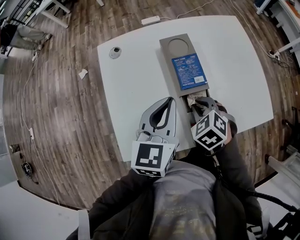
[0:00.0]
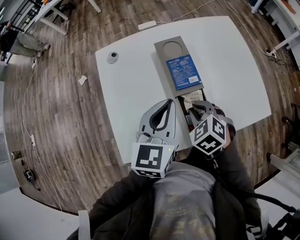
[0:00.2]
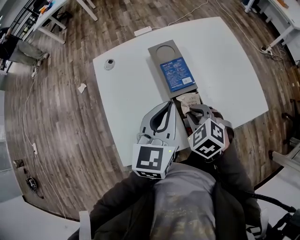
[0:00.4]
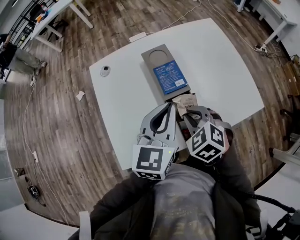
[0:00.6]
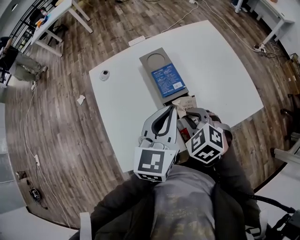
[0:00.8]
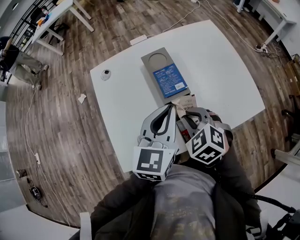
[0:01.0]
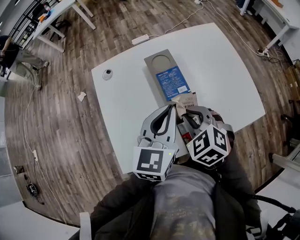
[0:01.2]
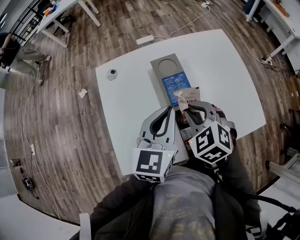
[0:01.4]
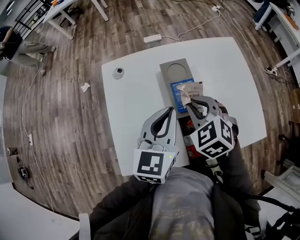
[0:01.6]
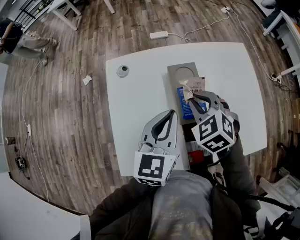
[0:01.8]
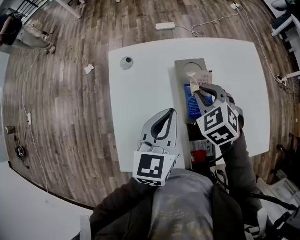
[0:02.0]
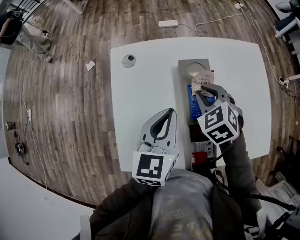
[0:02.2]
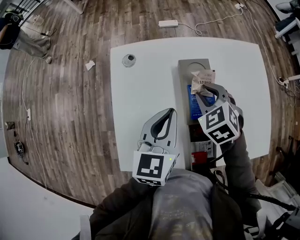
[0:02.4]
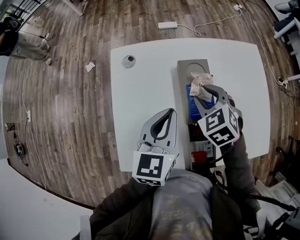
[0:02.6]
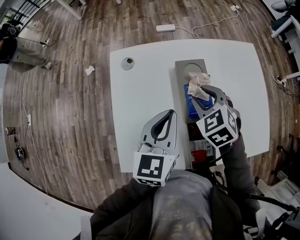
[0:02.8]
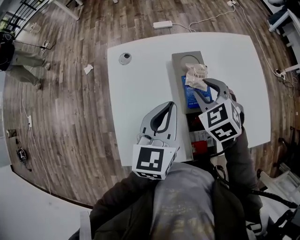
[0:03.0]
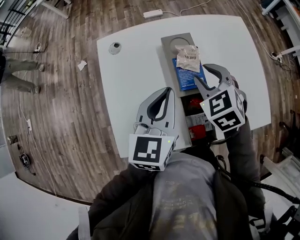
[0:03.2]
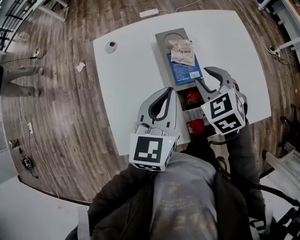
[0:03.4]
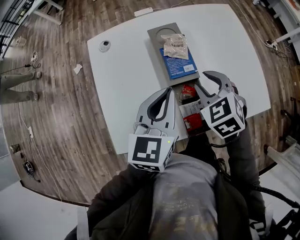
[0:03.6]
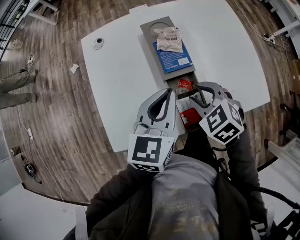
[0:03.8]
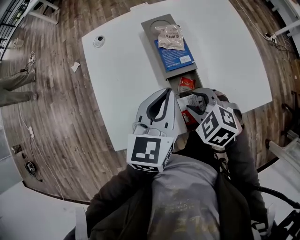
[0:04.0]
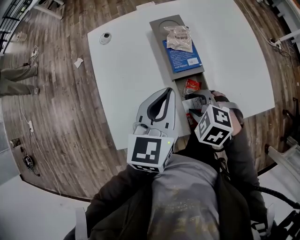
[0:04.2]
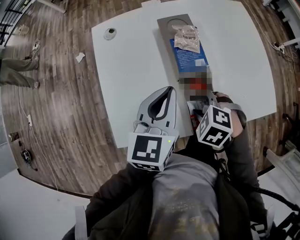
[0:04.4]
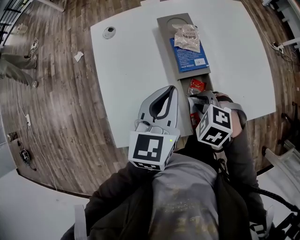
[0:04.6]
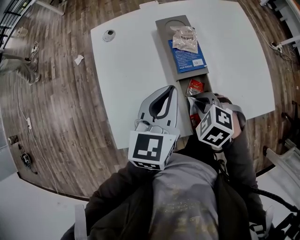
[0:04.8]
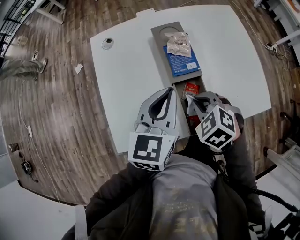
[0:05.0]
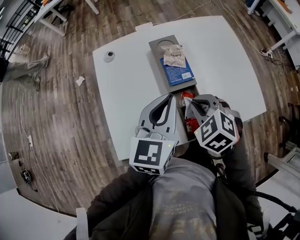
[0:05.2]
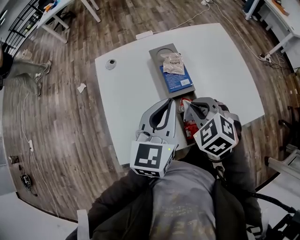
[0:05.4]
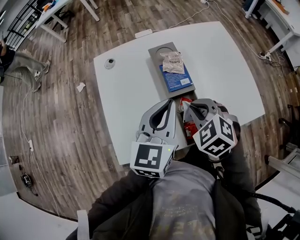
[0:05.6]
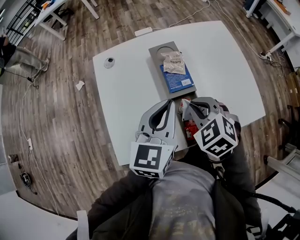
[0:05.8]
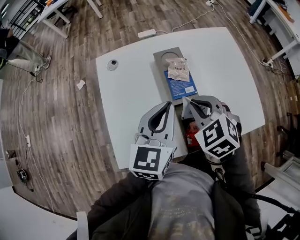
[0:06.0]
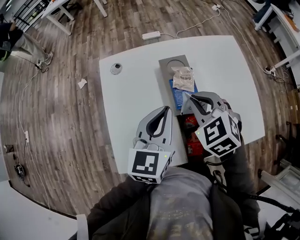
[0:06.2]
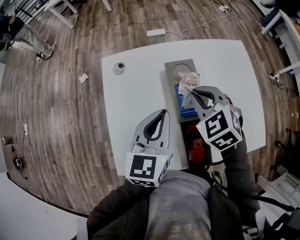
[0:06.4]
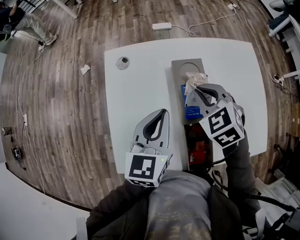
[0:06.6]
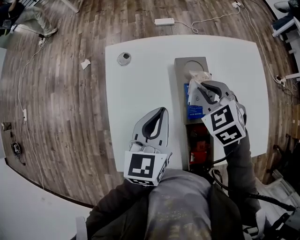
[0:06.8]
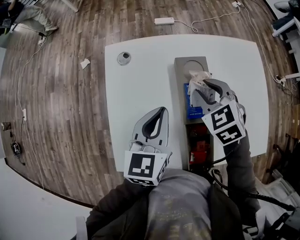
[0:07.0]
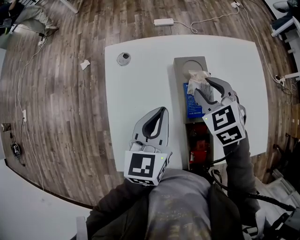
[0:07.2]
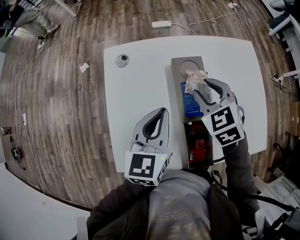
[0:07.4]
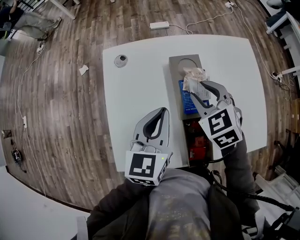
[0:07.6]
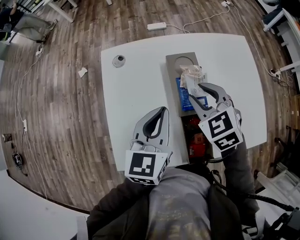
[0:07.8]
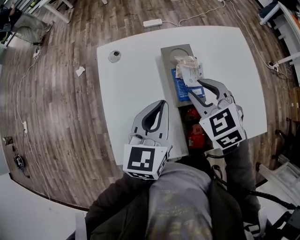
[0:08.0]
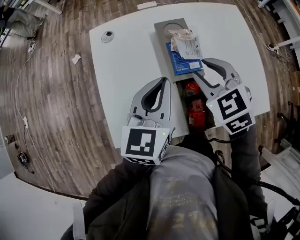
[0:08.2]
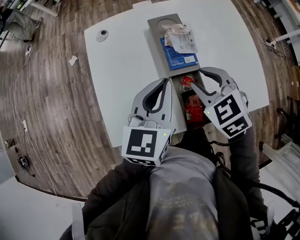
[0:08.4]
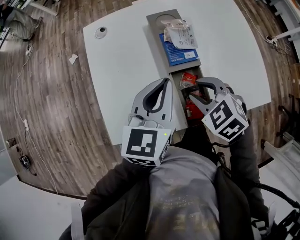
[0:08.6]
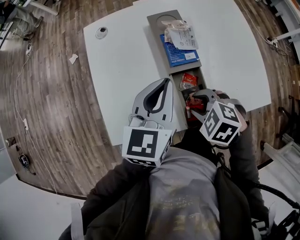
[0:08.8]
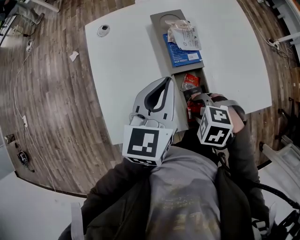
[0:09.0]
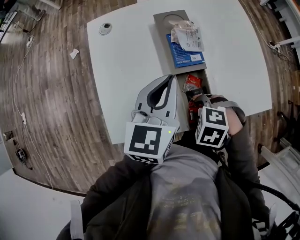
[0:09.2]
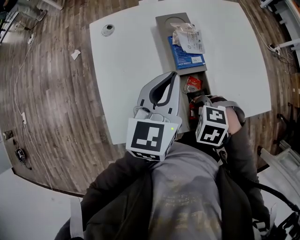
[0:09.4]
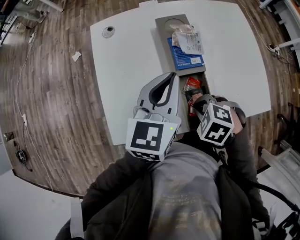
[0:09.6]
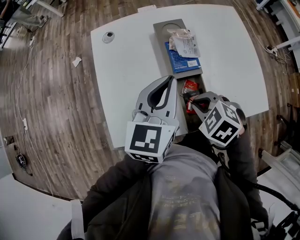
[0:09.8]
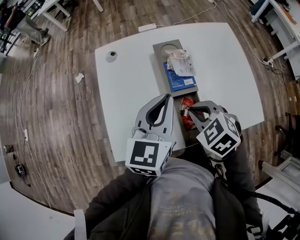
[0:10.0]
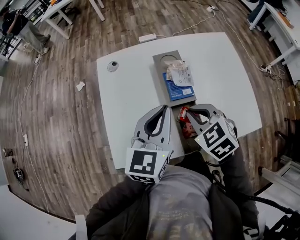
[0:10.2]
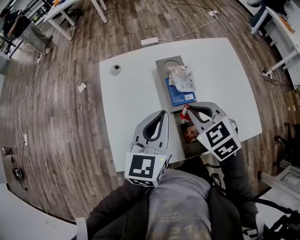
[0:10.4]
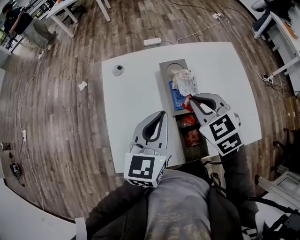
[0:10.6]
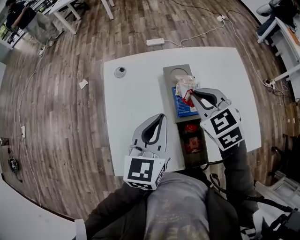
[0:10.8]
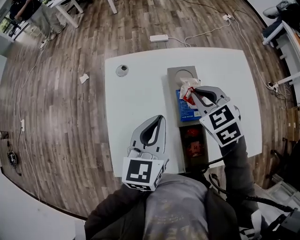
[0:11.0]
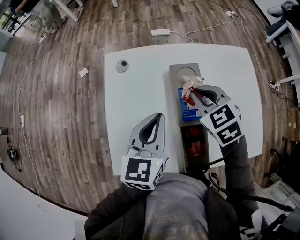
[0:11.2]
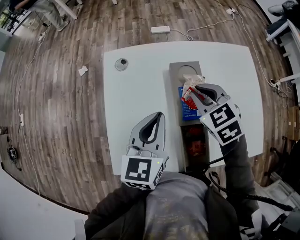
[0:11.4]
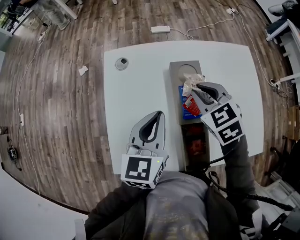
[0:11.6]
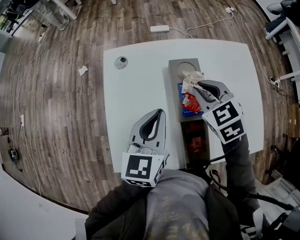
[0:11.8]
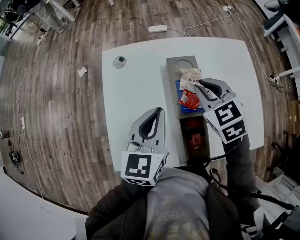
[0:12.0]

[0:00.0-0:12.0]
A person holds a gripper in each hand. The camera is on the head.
0:00.0 to 0:01.6: The right gripper moves upward and forward, about 15 cm.
0:01.6 to 0:03.0: The right gripper moves forward, some 5 cm.
0:03.0 to 0:04.4: The left gripper shifts some 5 cm backward. The right gripper goes roughly 20 cm backward and downward, and swivels roughly 30 degrees.
0:04.4 to 0:06.0: The right gripper goes roughly 15 cm upward and forward, rotates roughly 30 degrees, and closes; the left gripper shifts by some 5 cm.
0:06.0 to 0:07.6: The right gripper is displaced forward by about 10 cm, and opens its fingers; the left gripper ends up roughly 5 cm from where it was.
0:07.6 to 0:09.0: The right gripper shifts by about 25 cm, and tilts its fingers roughly 30 degrees downward. The left gripper changes place by about 5 cm.
0:09.0 to 0:10.4: The right gripper travels upward by roughly 15 cm, tips its fingers upward by about 30 degrees, and closes.
0:10.4 to 0:12.0: The left gripper shifts some 5 cm forward. Meanwhile the right gripper shifts approximately 10 cm forward.

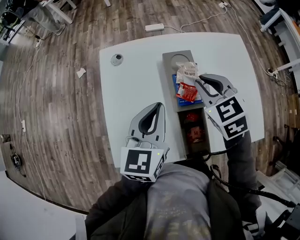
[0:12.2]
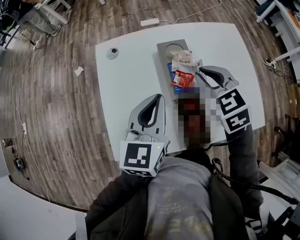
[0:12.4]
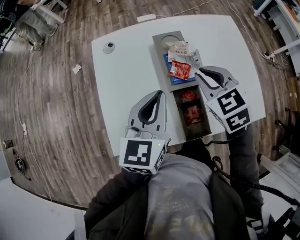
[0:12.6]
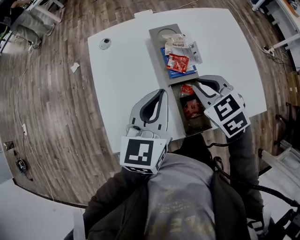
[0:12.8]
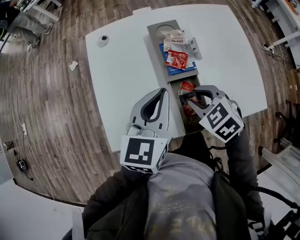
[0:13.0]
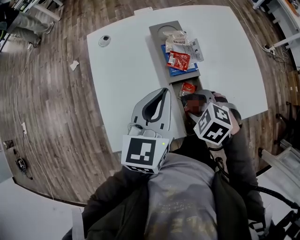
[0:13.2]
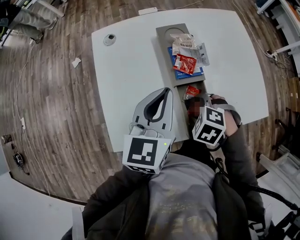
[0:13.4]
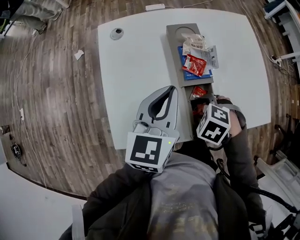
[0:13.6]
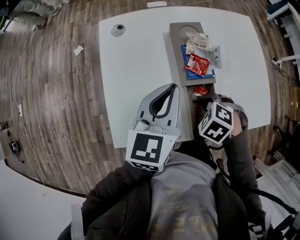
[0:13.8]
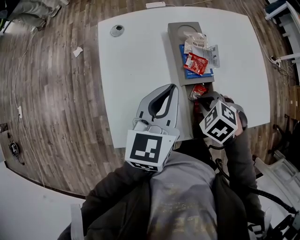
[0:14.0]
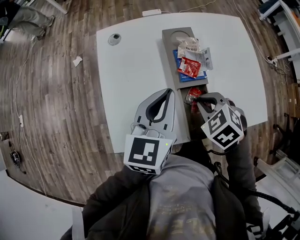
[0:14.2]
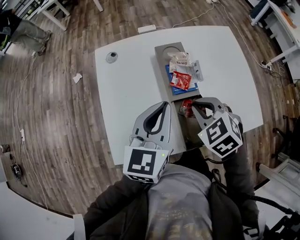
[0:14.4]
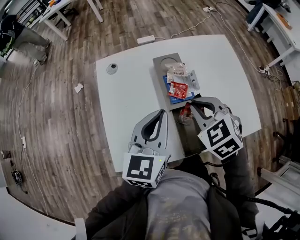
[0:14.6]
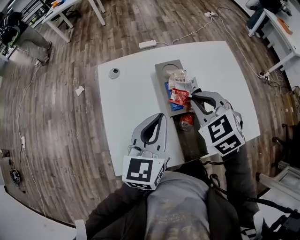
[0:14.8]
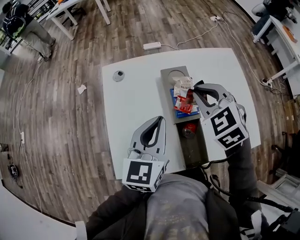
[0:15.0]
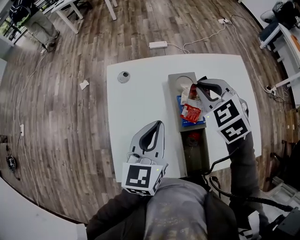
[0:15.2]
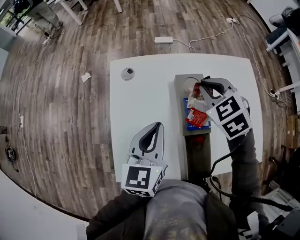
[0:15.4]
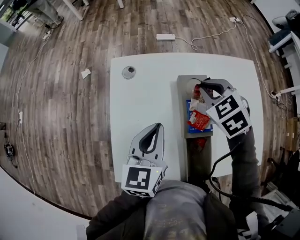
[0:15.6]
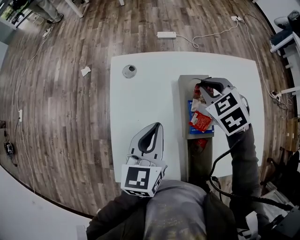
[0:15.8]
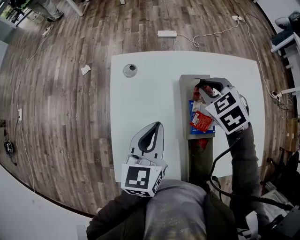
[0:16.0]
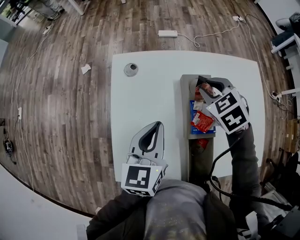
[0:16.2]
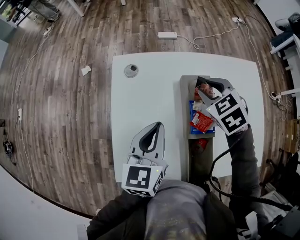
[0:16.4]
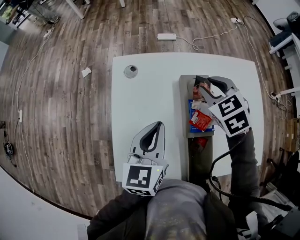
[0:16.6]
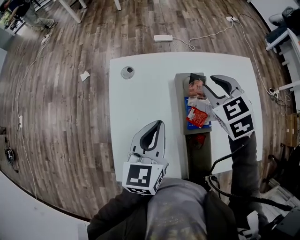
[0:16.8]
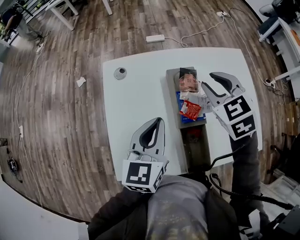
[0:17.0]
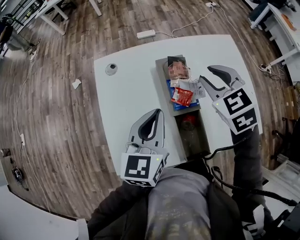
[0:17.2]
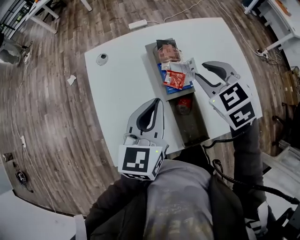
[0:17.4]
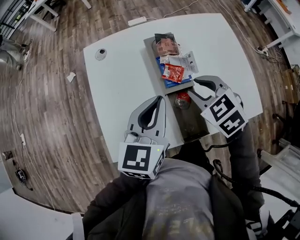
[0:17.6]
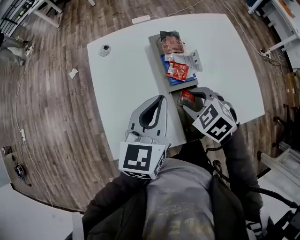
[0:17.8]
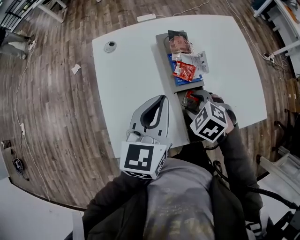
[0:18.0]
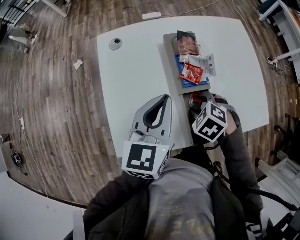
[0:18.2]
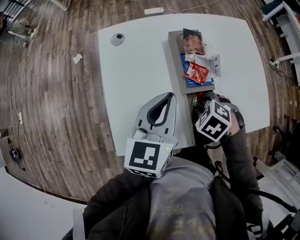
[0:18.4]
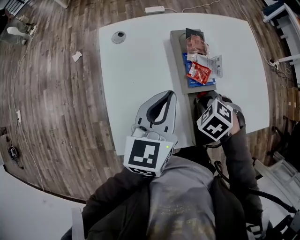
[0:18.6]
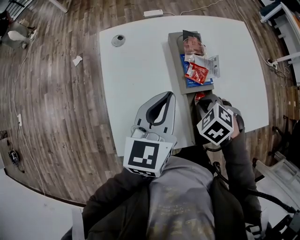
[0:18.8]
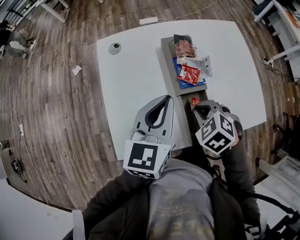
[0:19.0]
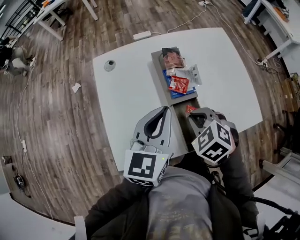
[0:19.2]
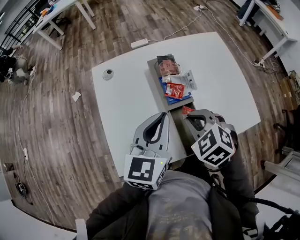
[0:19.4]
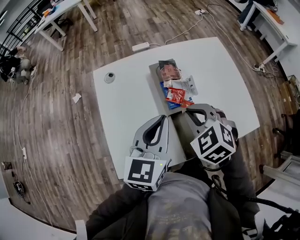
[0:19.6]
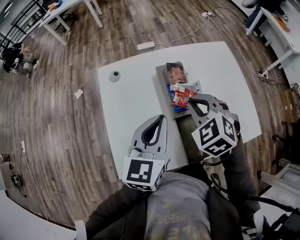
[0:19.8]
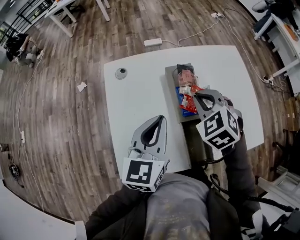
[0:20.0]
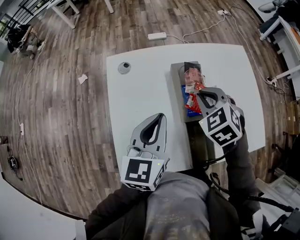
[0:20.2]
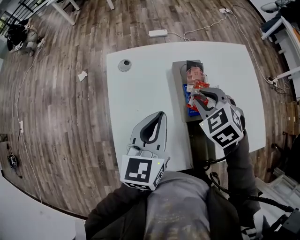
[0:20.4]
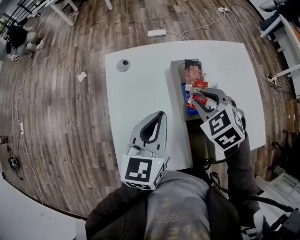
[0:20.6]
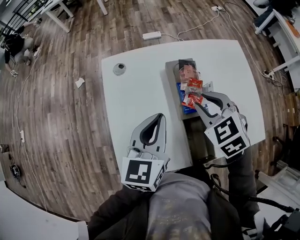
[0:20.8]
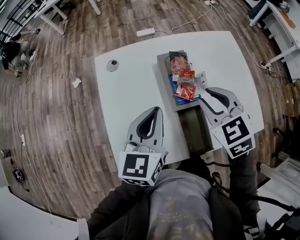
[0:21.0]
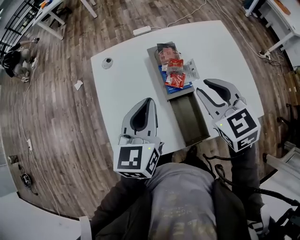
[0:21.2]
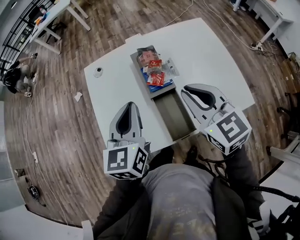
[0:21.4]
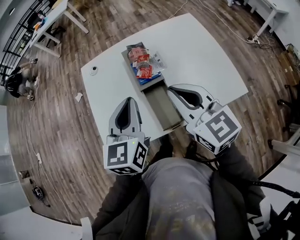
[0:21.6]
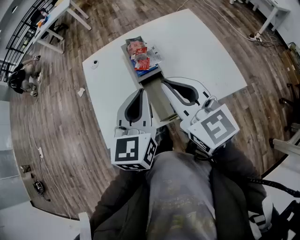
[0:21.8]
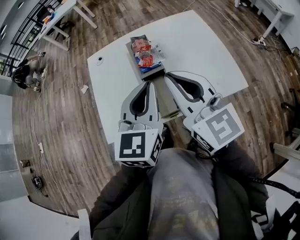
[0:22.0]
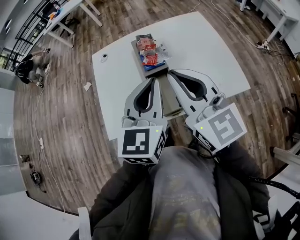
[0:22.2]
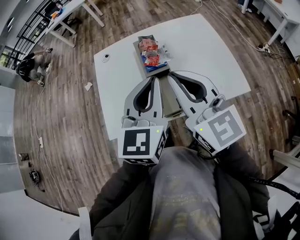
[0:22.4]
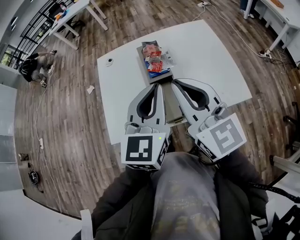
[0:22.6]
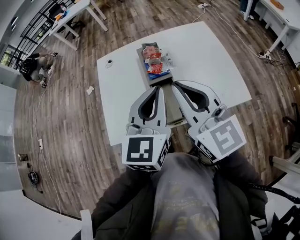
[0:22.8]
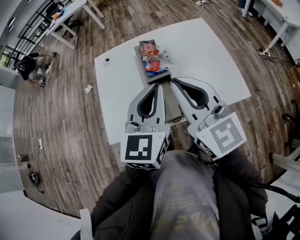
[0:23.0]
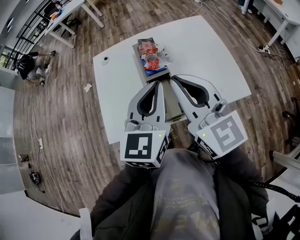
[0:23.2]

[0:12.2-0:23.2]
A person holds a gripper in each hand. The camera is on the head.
0:12.2 to 0:13.8: The right gripper shifts approximately 15 cm downward, points its fingers about 40 degrees further downward, and opens, then closes again.
0:13.8 to 0:15.4: The left gripper changes place by about 5 cm; the right gripper changes place by roughly 25 cm, and tips its fingers upward by roughly 30 degrees.
0:15.4 to 0:17.0: The right gripper ends up some 5 cm from where it was, and opens its fingers.
0:17.0 to 0:18.4: The right gripper is displaced downward by about 20 cm, and angles its fingers downward, by some 40 degrees.
0:18.4 to 0:20.0: The right gripper moves upward, roughly 15 cm, angles its fingers upward, by approximately 30 degrees, and closes.
0:20.0 to 0:21.6: The right gripper is displaced backward and upward by roughly 20 cm, angles its fingers upward, by roughly 40 degrees, and opens, then closes once more. The left gripper shifts some 10 cm backward and to the right.
0:21.6 to 0:23.2: The left gripper goes roughly 5 cm to the right; the right gripper goes roughly 5 cm upward.

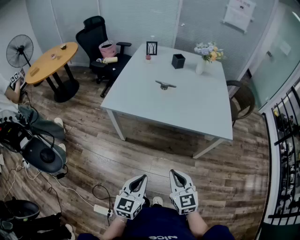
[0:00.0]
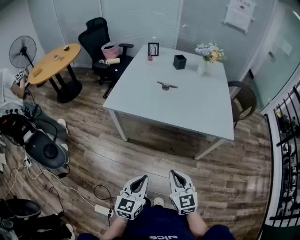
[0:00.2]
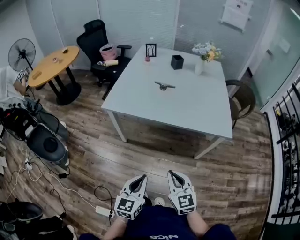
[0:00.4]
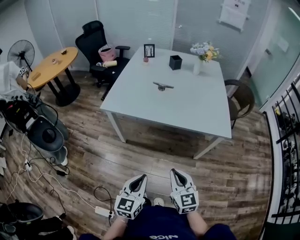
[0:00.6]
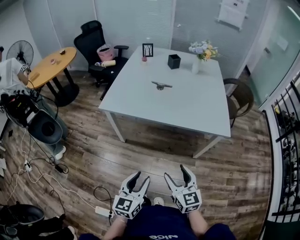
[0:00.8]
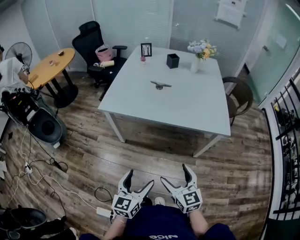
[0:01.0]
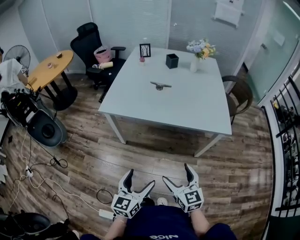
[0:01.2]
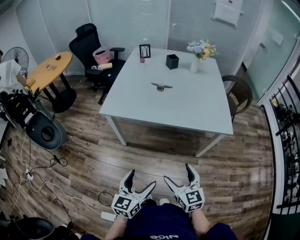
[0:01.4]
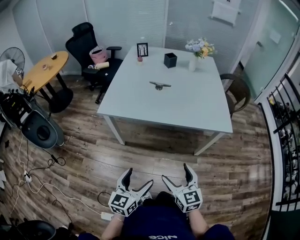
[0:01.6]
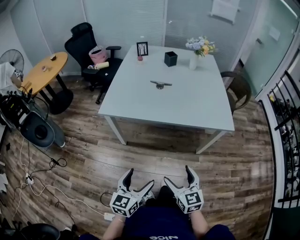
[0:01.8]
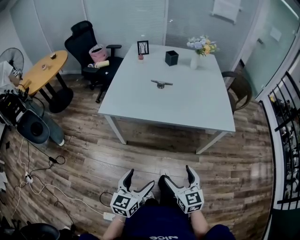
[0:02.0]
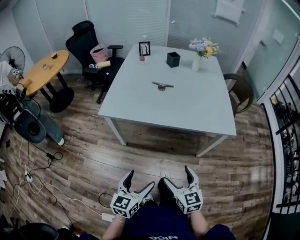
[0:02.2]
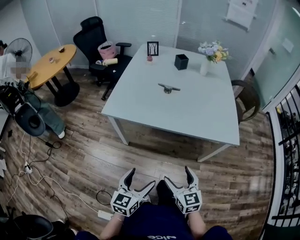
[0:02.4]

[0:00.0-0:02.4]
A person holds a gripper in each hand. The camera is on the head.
0:00.0 to 0:01.2: The right gripper opens up. The left gripper opens.
0:01.2 to 0:02.4: The two grippers go approximately 5 cm forward.
